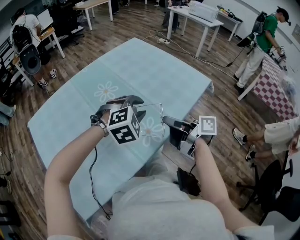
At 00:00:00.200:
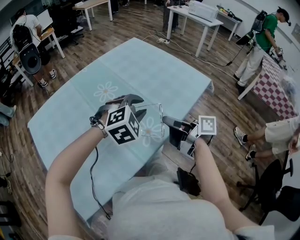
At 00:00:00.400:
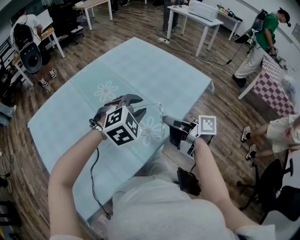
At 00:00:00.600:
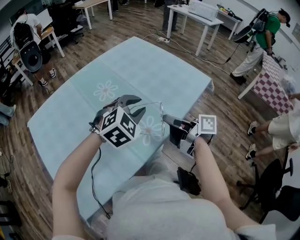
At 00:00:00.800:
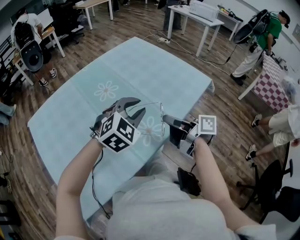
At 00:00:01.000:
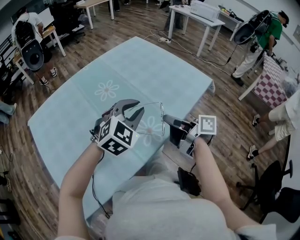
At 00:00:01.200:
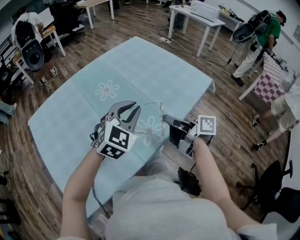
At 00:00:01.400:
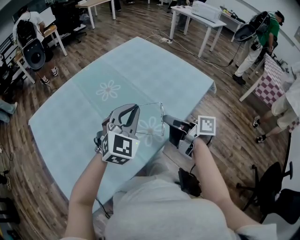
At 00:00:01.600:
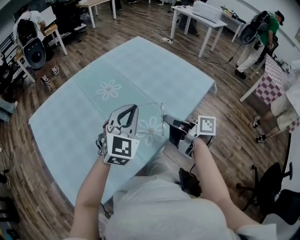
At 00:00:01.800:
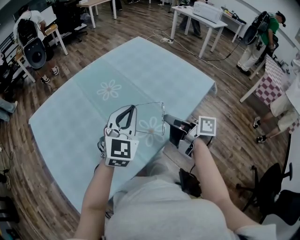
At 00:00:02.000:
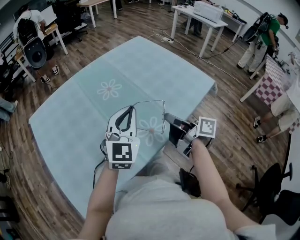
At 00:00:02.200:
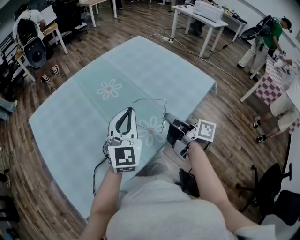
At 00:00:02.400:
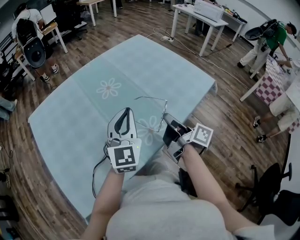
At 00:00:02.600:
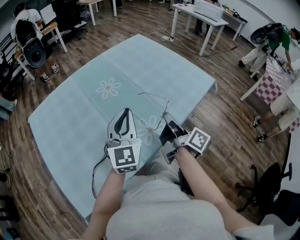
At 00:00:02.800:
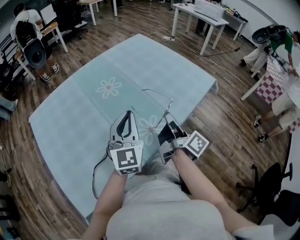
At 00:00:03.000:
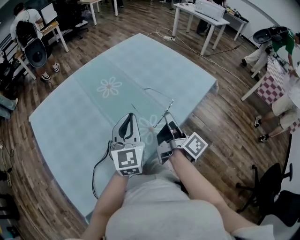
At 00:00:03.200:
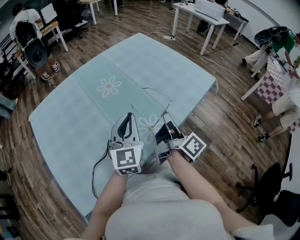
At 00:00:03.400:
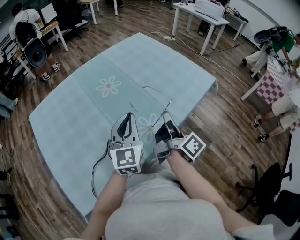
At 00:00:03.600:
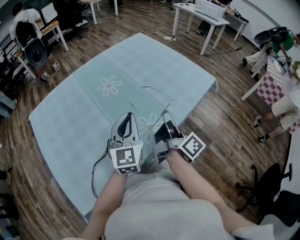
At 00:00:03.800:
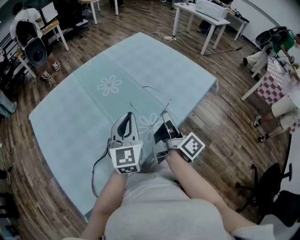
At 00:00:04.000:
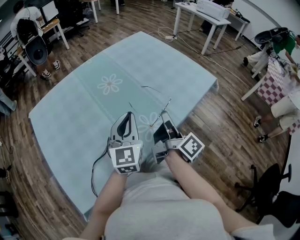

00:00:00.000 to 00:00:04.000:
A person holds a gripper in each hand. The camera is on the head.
00:00:00.000 to 00:00:01.400: The left gripper changes place by roughly 5 cm, points its fingers roughly 30 degrees further upward, and closes up.
00:00:01.400 to 00:00:02.600: The right gripper changes its angle by some 30 degrees, while the left gripper goes approximately 5 cm to the left, and turns by some 30 degrees.
00:00:02.600 to 00:00:04.000: The grippers stay close to where they were, moving slightly.

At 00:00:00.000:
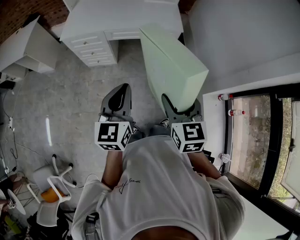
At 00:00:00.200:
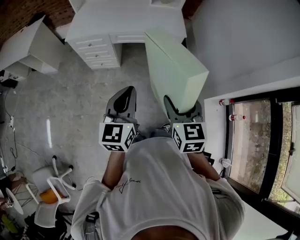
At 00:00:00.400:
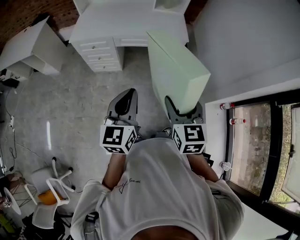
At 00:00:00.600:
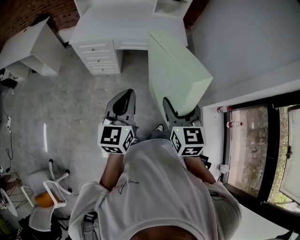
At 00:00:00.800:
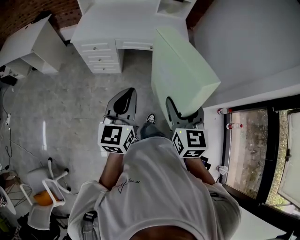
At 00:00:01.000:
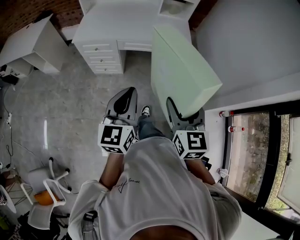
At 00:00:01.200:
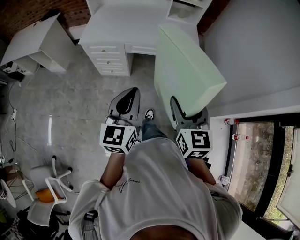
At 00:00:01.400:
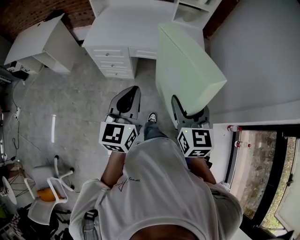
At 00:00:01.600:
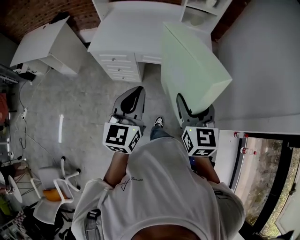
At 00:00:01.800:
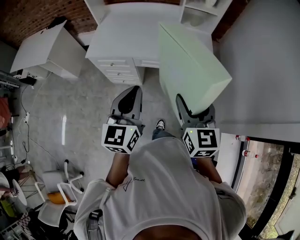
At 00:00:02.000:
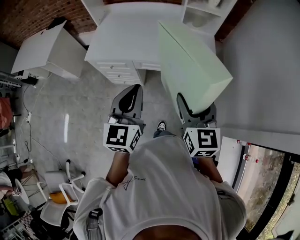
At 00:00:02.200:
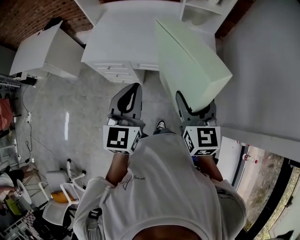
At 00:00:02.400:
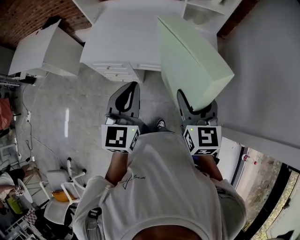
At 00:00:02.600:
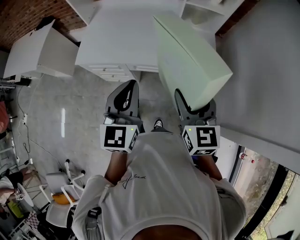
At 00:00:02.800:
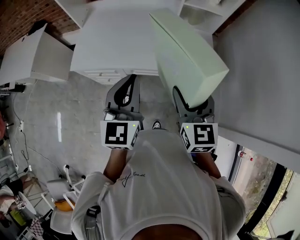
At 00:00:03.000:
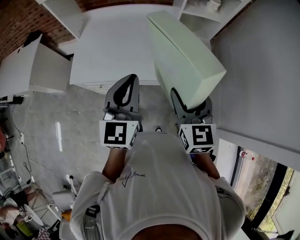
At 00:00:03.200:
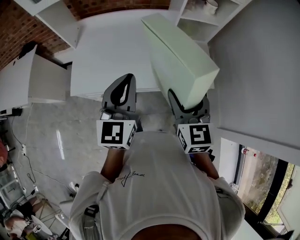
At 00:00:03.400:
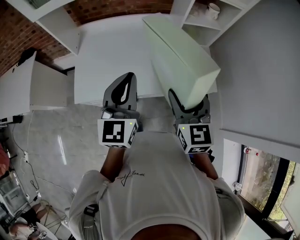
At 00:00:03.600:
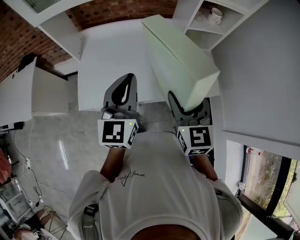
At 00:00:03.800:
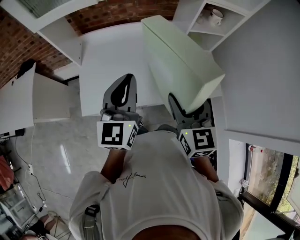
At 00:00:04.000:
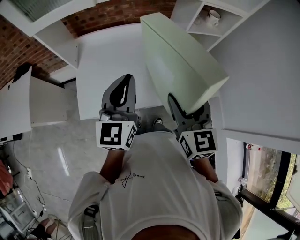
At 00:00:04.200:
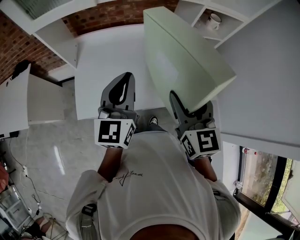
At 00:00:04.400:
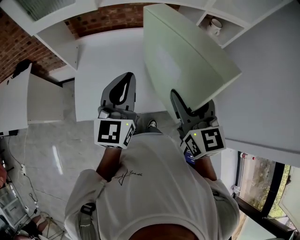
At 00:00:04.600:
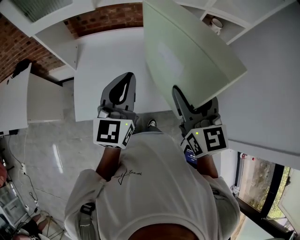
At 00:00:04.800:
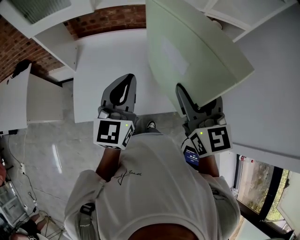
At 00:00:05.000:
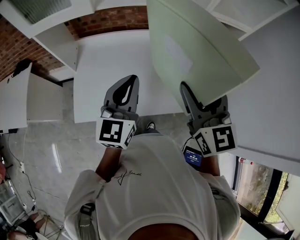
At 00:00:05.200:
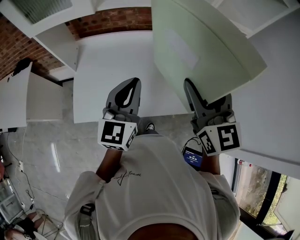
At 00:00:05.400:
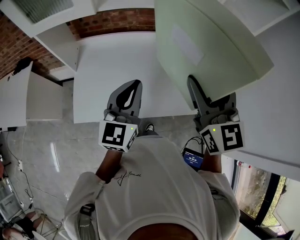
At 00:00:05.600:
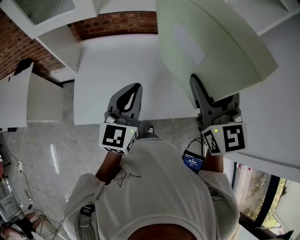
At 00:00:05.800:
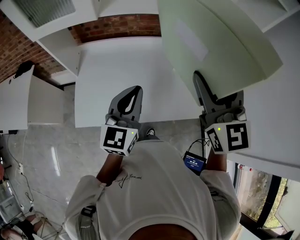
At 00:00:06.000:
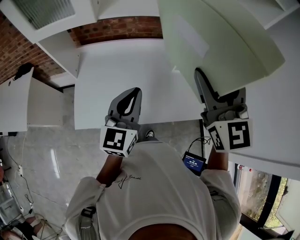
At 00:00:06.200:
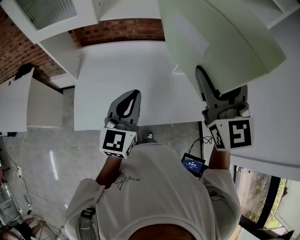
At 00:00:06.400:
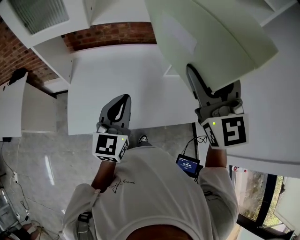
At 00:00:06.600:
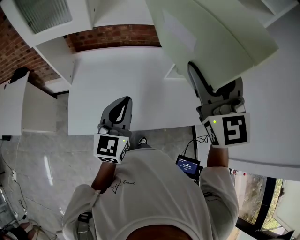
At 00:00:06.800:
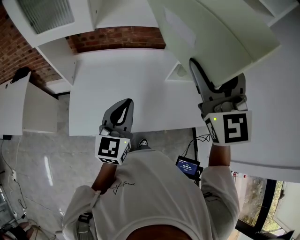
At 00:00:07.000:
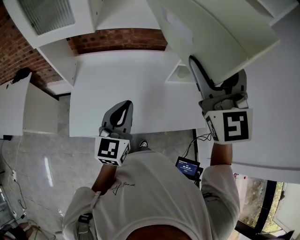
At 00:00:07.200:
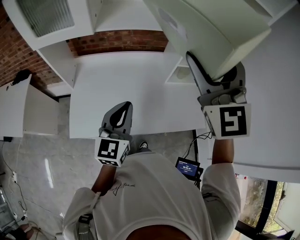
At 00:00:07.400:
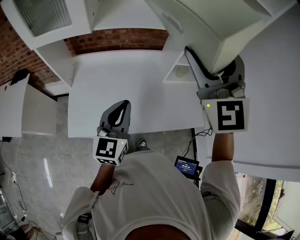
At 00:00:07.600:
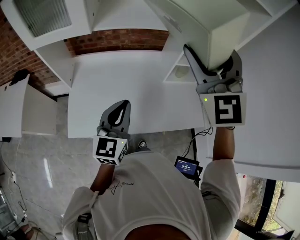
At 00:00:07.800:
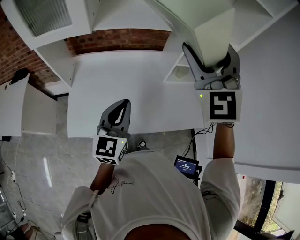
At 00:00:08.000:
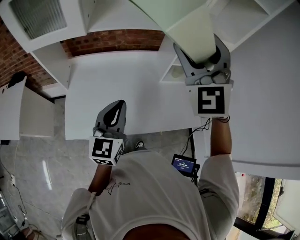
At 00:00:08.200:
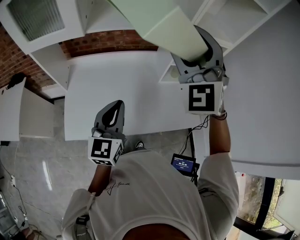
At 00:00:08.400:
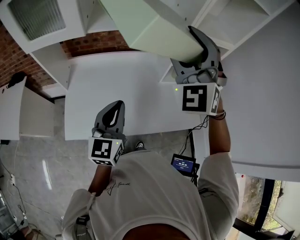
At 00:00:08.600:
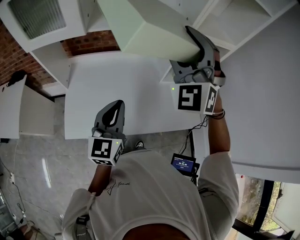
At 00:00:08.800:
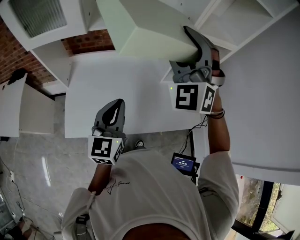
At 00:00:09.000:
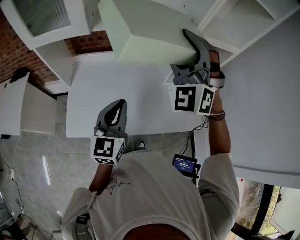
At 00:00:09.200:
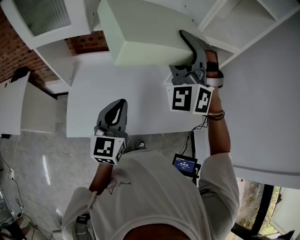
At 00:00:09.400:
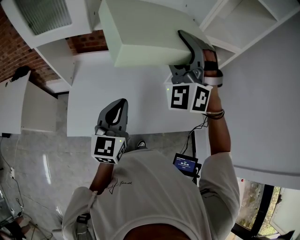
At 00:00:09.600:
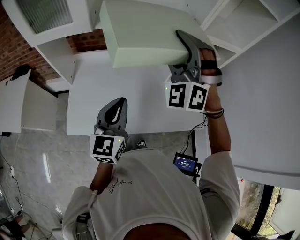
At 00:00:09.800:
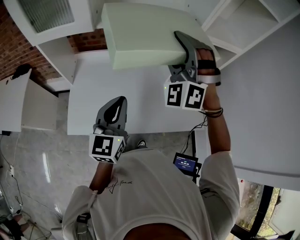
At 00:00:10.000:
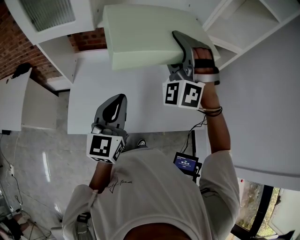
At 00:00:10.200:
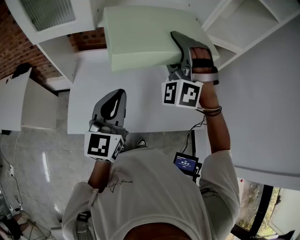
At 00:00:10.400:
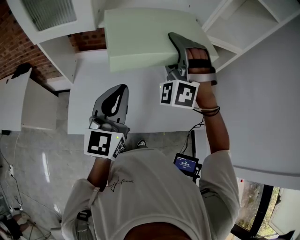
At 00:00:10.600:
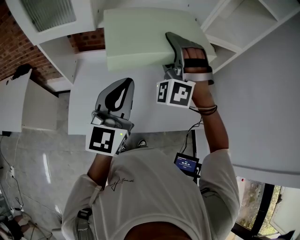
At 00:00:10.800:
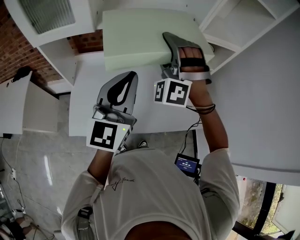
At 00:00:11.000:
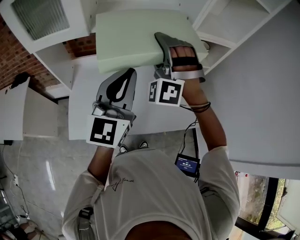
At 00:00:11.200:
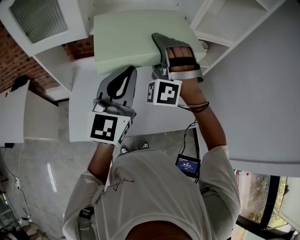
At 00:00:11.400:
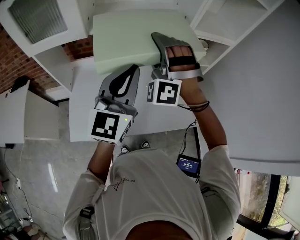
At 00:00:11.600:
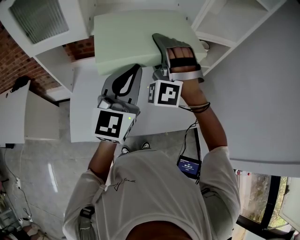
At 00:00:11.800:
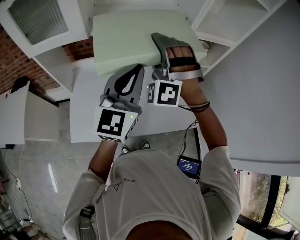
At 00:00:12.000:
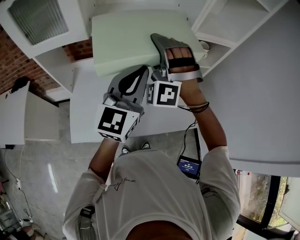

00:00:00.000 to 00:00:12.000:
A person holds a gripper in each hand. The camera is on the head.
00:00:00.000 to 00:00:01.600: Both grippers travel together forward and to the left, roughly 15 cm.
00:00:01.600 to 00:00:03.000: Both grippers move forward, roughly 30 cm.
00:00:03.000 to 00:00:04.400: The left gripper heads forward and to the left, covering approximately 20 cm. Meanwhile the right gripper is displaced forward, to the left and upward by approximately 20 cm.
00:00:04.400 to 00:00:06.000: The right gripper goes some 15 cm upward and forward, and rotates approximately 20 degrees.
00:00:06.000 to 00:00:07.600: The right gripper travels upward and forward by about 10 cm, and changes its angle by roughly 20 degrees.
00:00:07.600 to 00:00:09.000: The right gripper goes approximately 10 cm downward and forward, and turns by some 30 degrees.
00:00:09.000 to 00:00:10.400: The right gripper heads downward, covering some 5 cm. Meanwhile the left gripper moves upward, roughly 10 cm.
00:00:10.400 to 00:00:12.000: The left gripper heads forward and to the right, covering roughly 10 cm.

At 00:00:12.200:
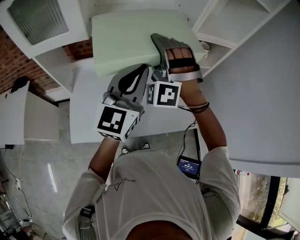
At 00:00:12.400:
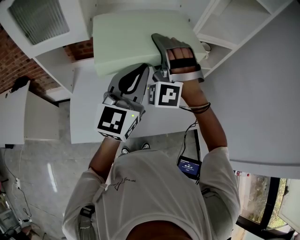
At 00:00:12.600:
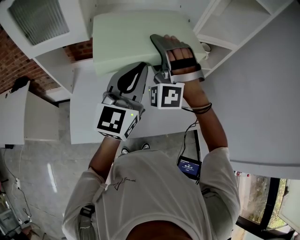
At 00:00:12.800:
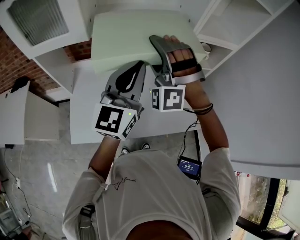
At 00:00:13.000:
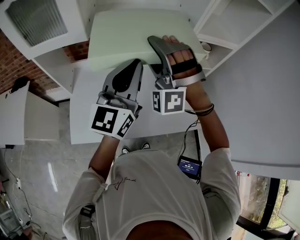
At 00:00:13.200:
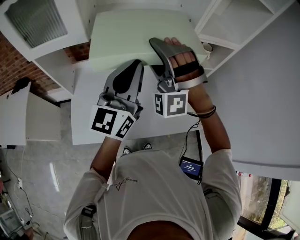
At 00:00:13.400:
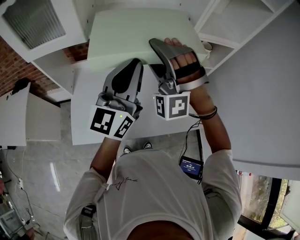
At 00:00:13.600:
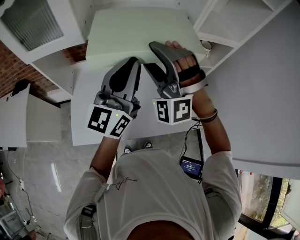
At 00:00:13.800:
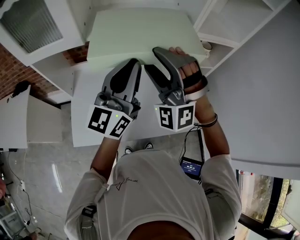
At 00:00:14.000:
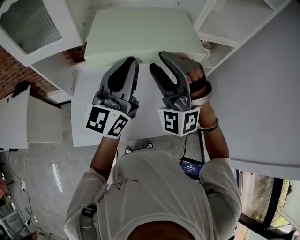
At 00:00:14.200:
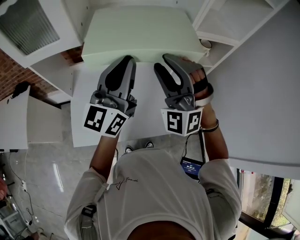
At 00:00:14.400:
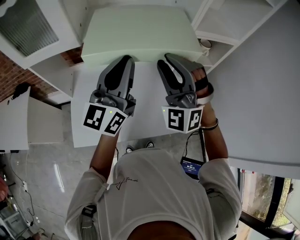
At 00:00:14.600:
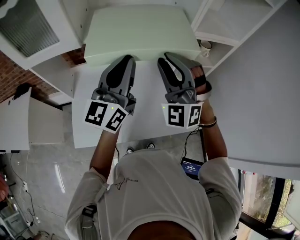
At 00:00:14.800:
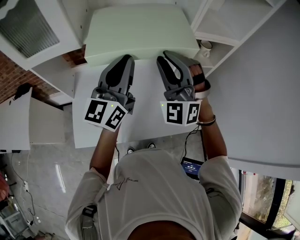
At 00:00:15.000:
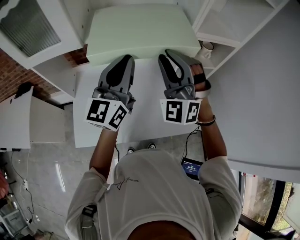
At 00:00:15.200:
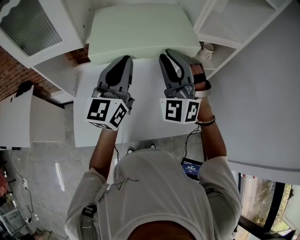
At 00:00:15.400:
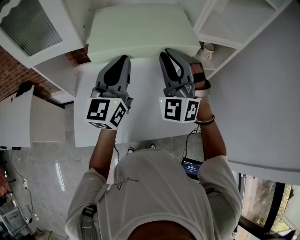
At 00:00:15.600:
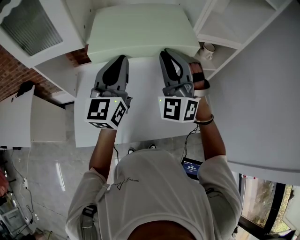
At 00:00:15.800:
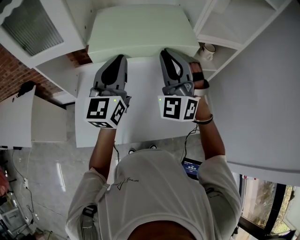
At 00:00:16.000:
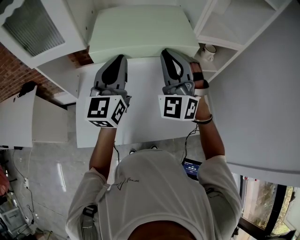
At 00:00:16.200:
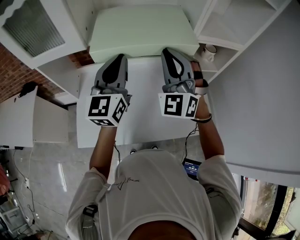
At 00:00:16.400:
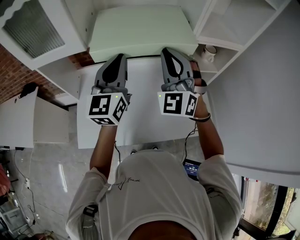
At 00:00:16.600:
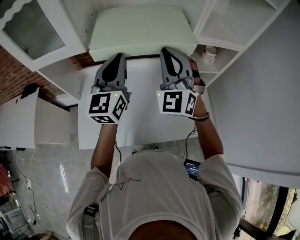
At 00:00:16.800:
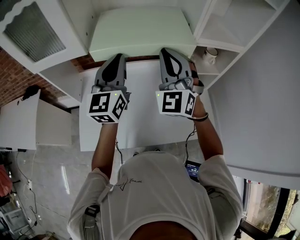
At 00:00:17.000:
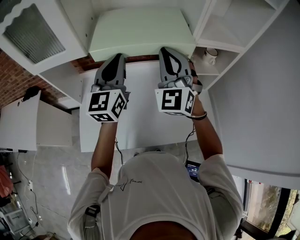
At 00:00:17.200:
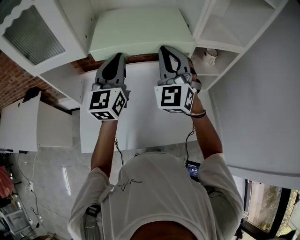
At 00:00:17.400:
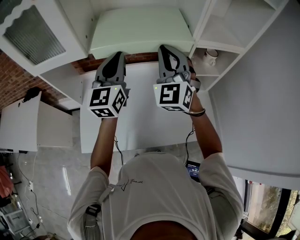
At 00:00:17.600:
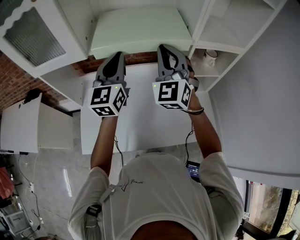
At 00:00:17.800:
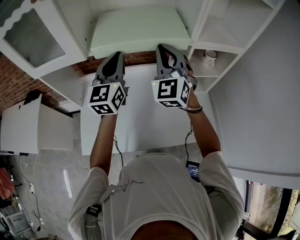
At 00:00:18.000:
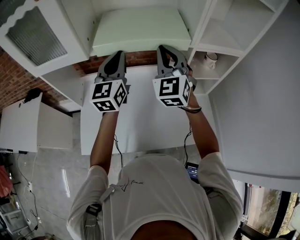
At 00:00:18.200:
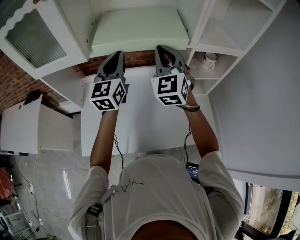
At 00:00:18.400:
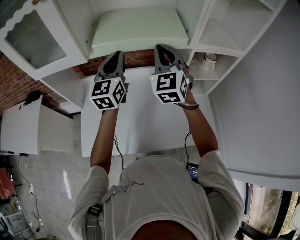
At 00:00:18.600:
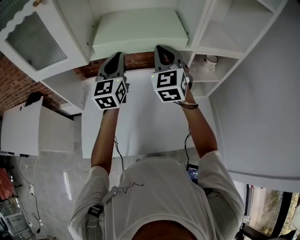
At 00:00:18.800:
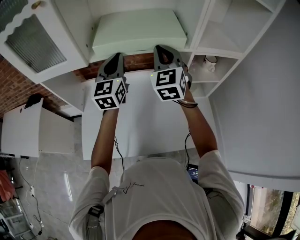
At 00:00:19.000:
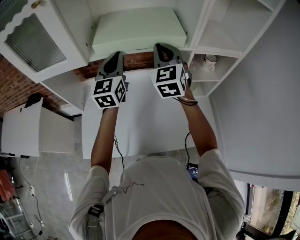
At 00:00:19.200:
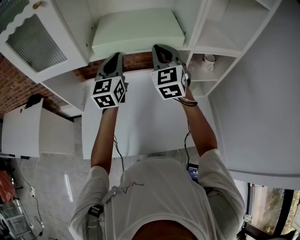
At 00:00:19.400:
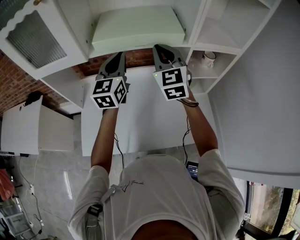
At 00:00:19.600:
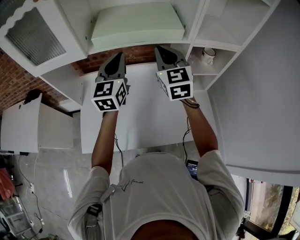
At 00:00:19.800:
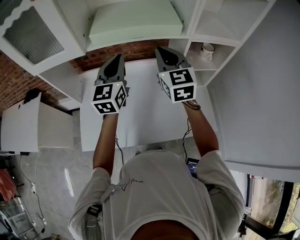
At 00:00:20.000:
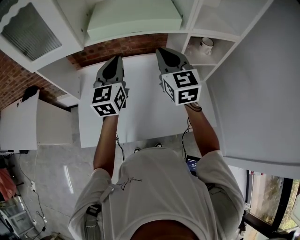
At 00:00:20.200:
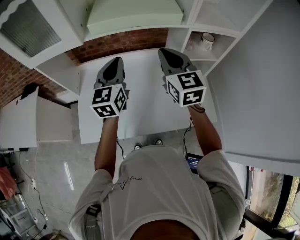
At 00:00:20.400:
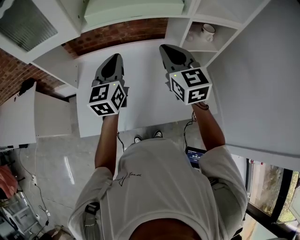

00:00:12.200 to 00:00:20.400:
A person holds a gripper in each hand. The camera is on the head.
00:00:12.200 to 00:00:13.800: The grippers make only small movements.
00:00:13.800 to 00:00:15.400: The right gripper changes place by some 5 cm, and closes up, while the left gripper ends up some 5 cm from where it was.
00:00:15.400 to 00:00:17.200: The grippers both shift forward by about 5 cm. The right gripper changes its angle by roughly 20 degrees.
00:00:17.200 to 00:00:18.800: The two grippers go about 5 cm forward.
00:00:18.800 to 00:00:20.400: Both grippers move backward and downward, about 15 cm. The right gripper rotates some 20 degrees.
